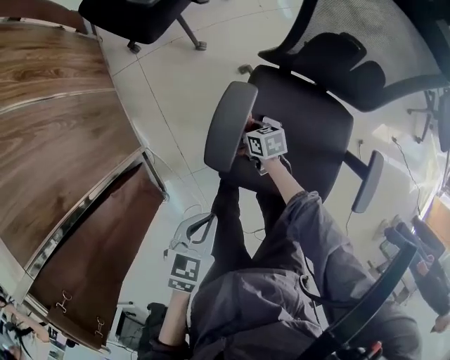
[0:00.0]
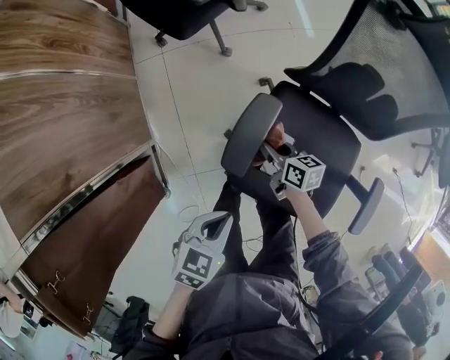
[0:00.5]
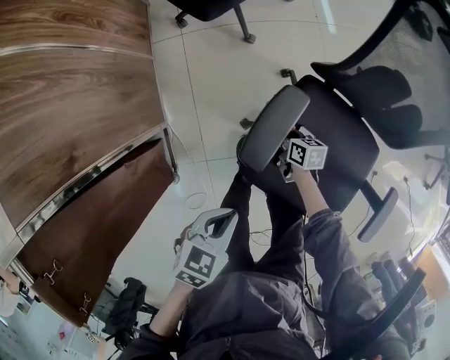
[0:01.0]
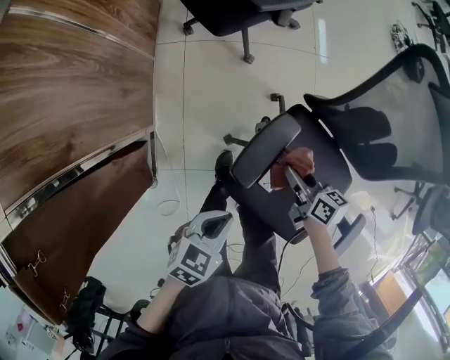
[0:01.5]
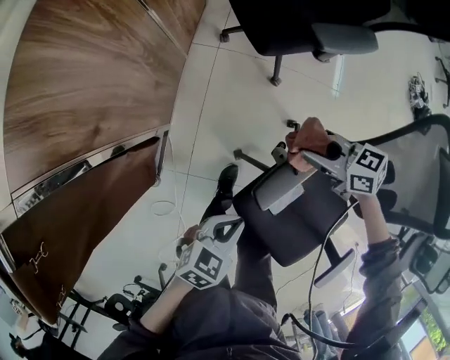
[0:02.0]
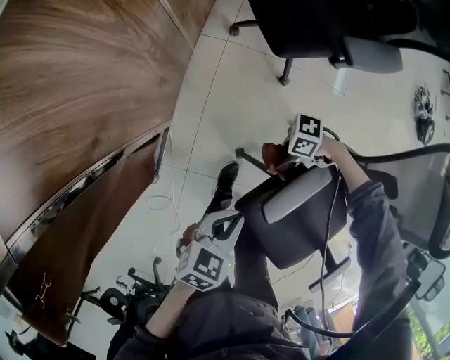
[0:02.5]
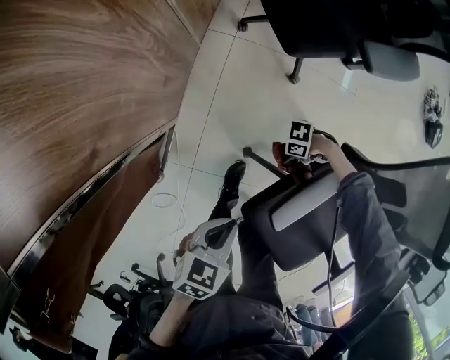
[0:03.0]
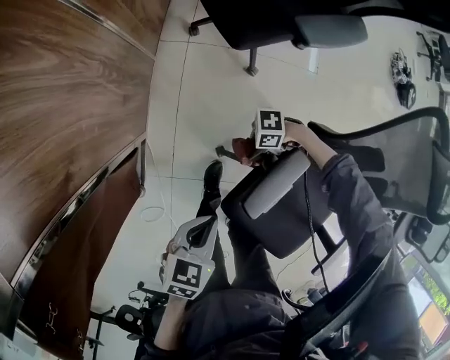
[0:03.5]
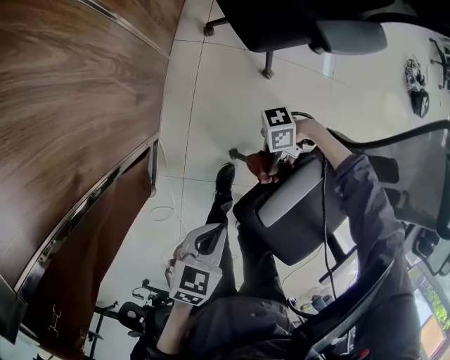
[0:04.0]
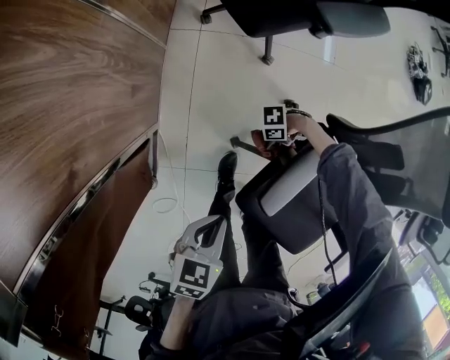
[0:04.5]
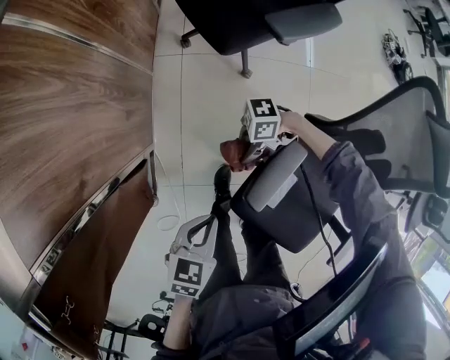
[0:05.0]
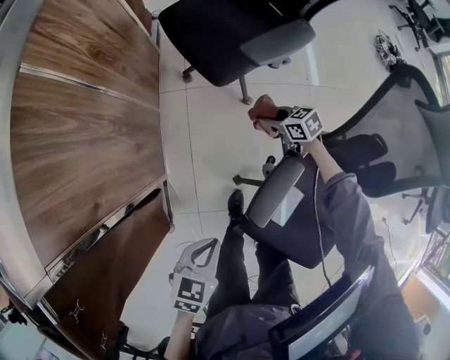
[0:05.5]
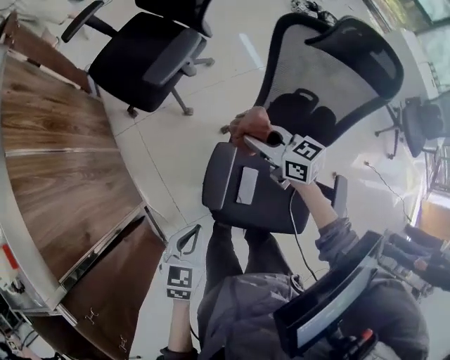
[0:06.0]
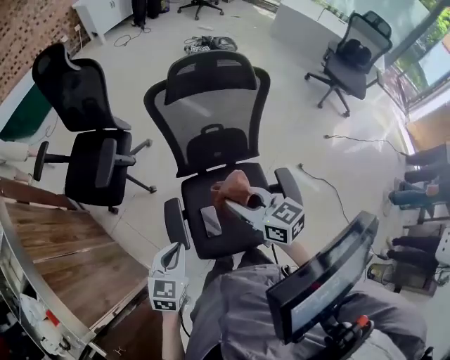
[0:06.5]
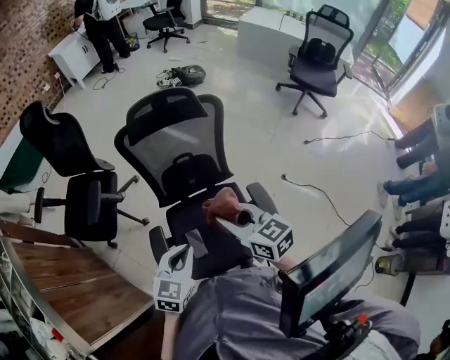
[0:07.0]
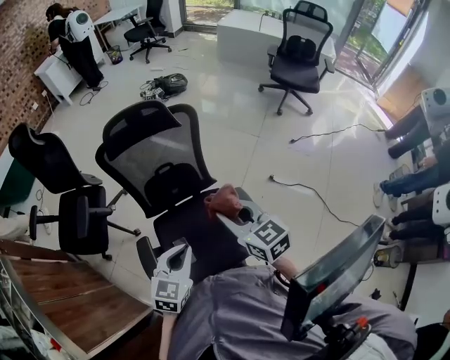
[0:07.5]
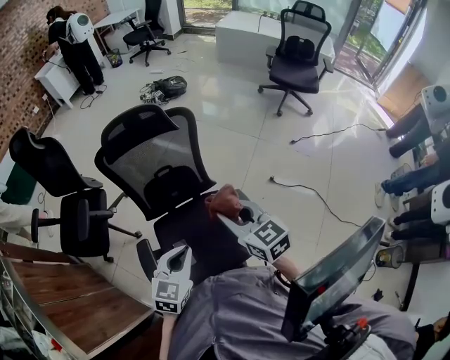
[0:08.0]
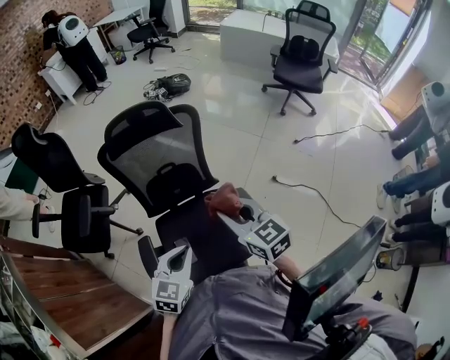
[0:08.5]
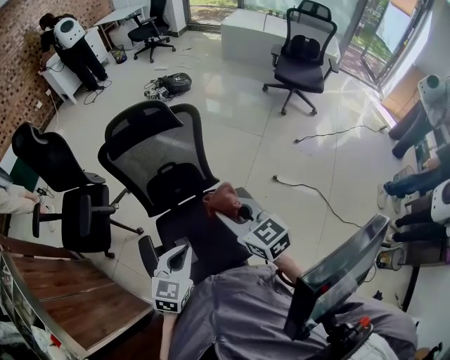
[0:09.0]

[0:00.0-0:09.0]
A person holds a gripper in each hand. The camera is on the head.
0:00.0 to 0:02.0: The right gripper moves up and down over about 25 cm, changing direction 2 times, and rotates about 60 degrees; the left gripper shifts by some 5 cm.
0:02.0 to 0:04.5: The right gripper swings up and down, some 30 cm each way, with 2 reversals, and turns by approximately 70 degrees. Meanwhile the left gripper moves approximately 10 cm.
0:04.5 to 0:07.0: The left gripper moves some 50 cm, and twists approximately 60 degrees clockwise, seen from behind. Meanwhile the right gripper shifts approximately 60 cm upward, and turns by some 150 degrees.
0:07.0 to 0:09.0: Both grippers move to the right, about 10 cm.

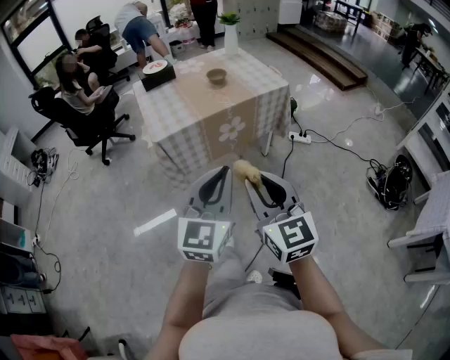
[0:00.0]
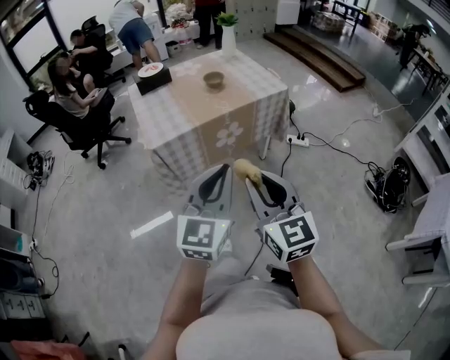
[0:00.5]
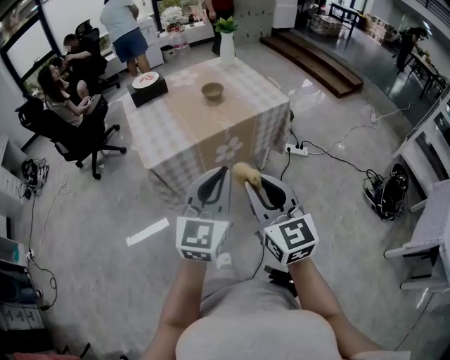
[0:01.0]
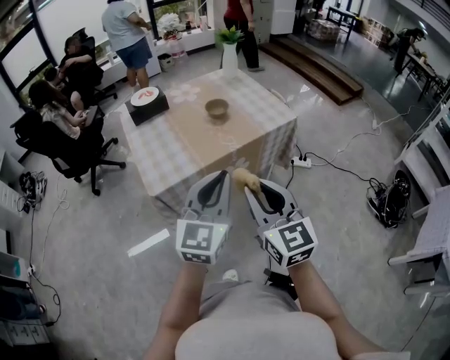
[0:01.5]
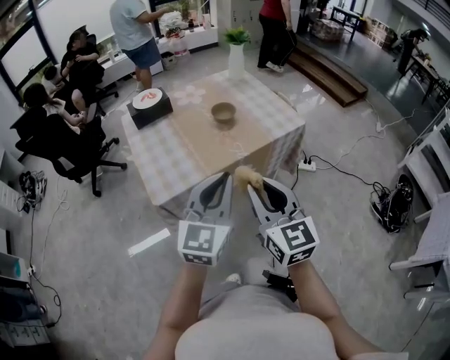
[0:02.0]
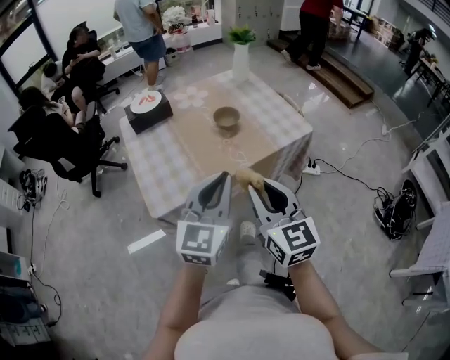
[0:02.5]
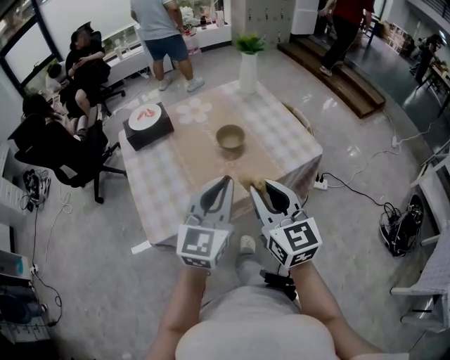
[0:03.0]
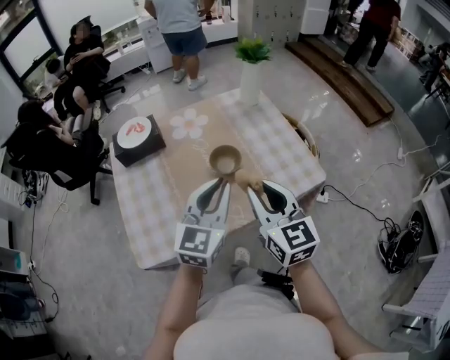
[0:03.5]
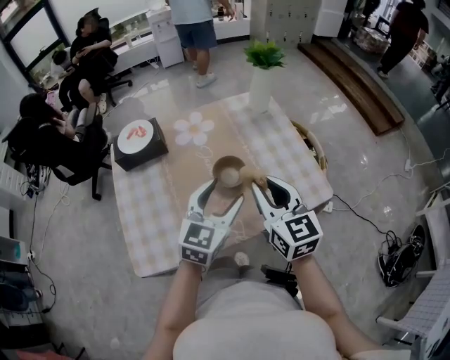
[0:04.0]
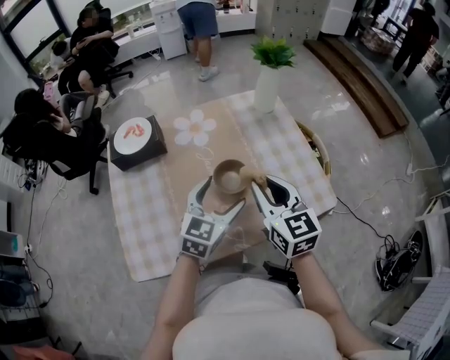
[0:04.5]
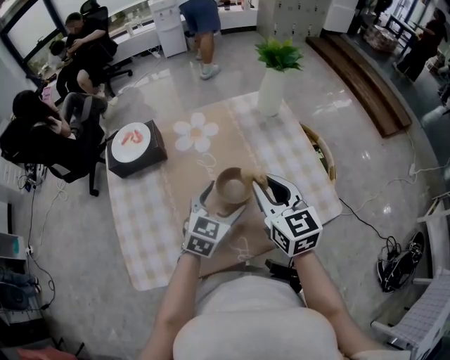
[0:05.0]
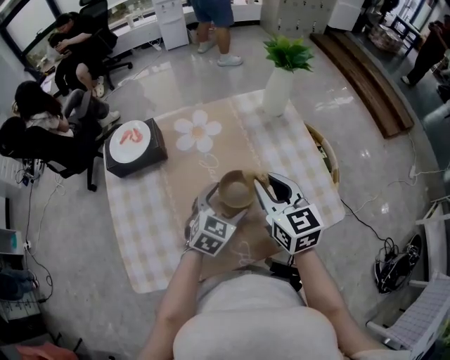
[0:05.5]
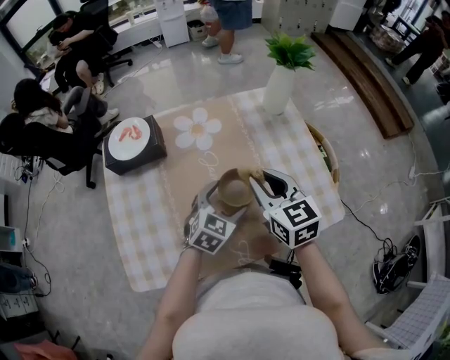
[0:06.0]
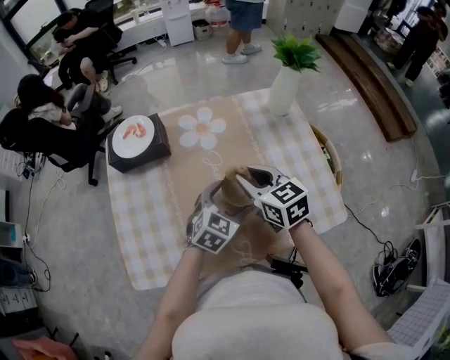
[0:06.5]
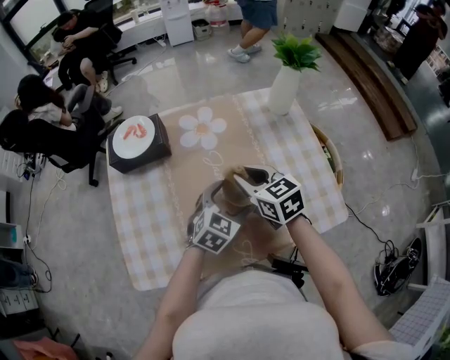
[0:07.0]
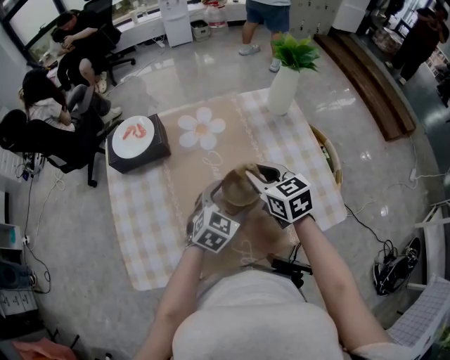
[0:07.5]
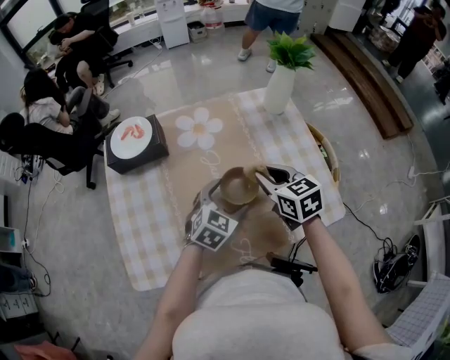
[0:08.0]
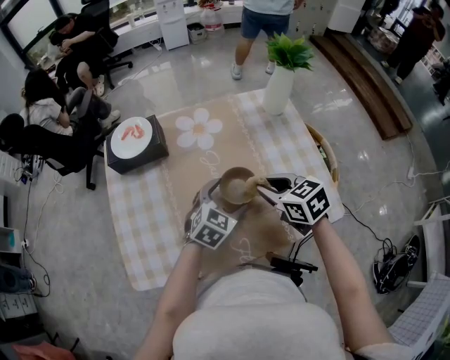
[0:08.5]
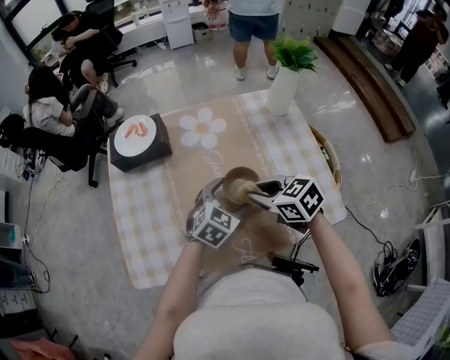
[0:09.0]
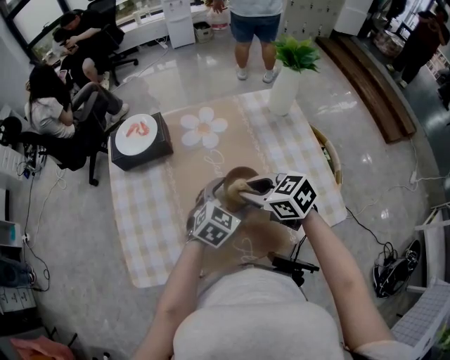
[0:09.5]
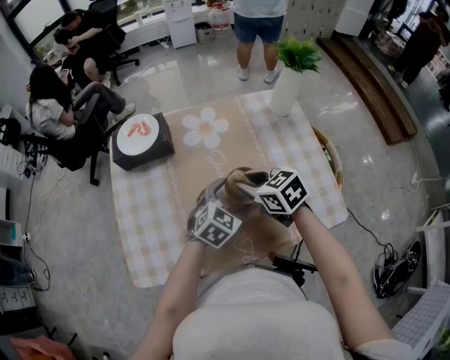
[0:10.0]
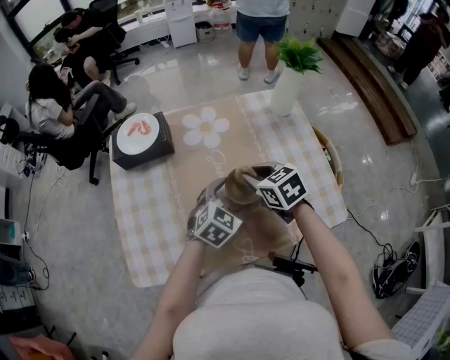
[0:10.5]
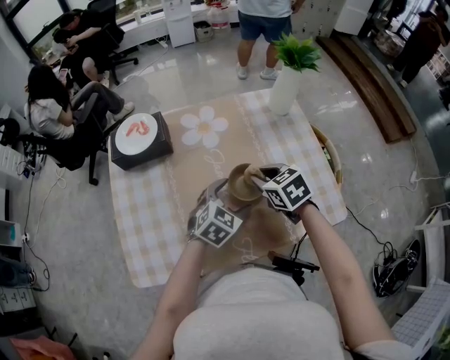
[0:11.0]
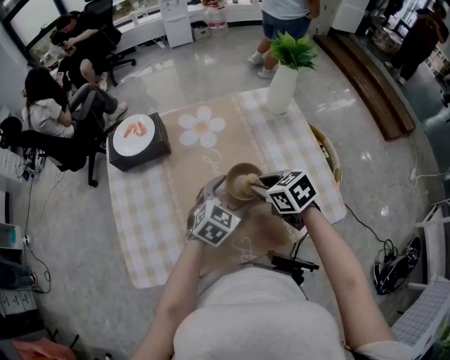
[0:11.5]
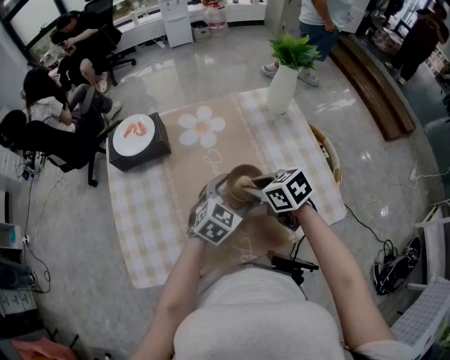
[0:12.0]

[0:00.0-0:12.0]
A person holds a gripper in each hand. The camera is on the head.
0:00.0 to 0:02.0: Both grippers move forward, about 25 cm.
0:02.0 to 0:04.0: Both grippers move forward, some 35 cm. The left gripper opens its fingers.
0:04.0 to 0:06.0: The left gripper travels downward and forward by approximately 15 cm, and rotates about 20 degrees. Meanwhile the right gripper travels forward and downward by approximately 15 cm.
0:06.0 to 0:08.0: The right gripper goes approximately 5 cm downward.
0:08.0 to 0:10.0: The right gripper goes roughly 10 cm to the left.
0:10.0 to 0:12.0: The grippers make only small movements.

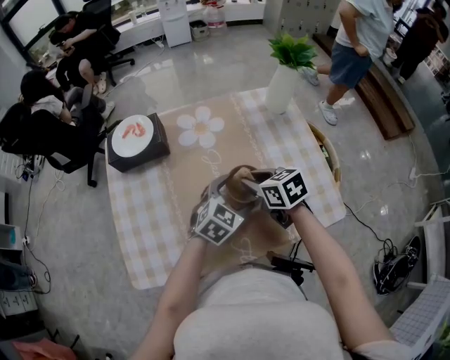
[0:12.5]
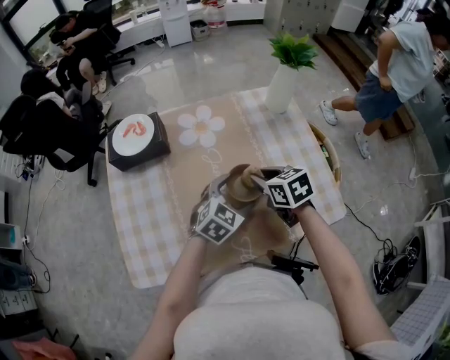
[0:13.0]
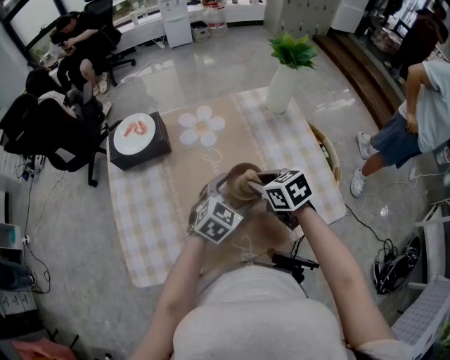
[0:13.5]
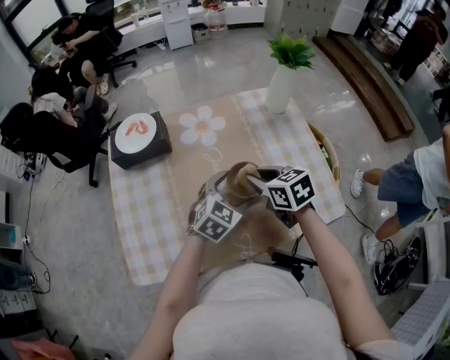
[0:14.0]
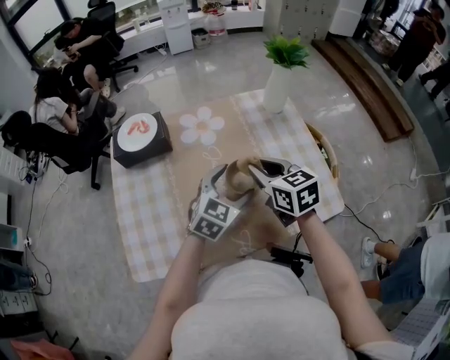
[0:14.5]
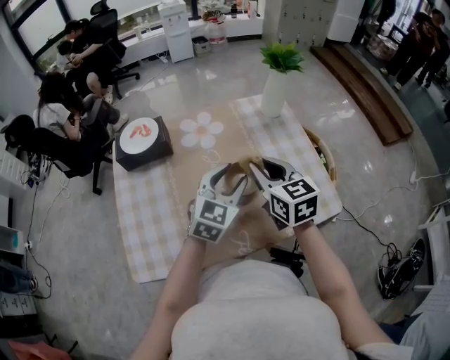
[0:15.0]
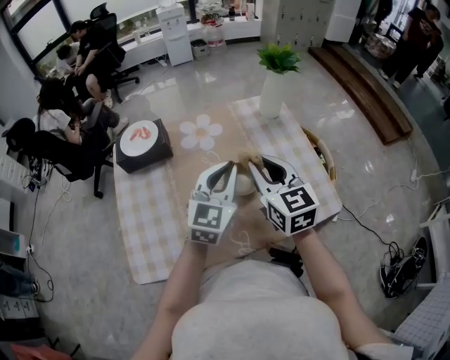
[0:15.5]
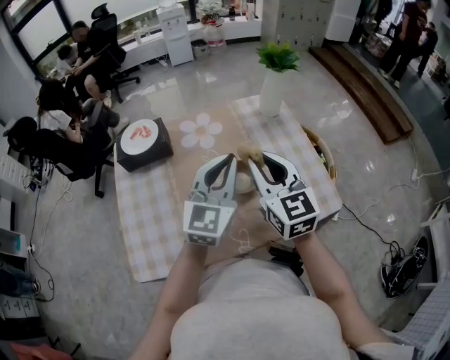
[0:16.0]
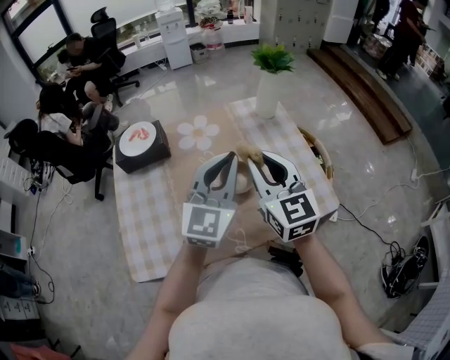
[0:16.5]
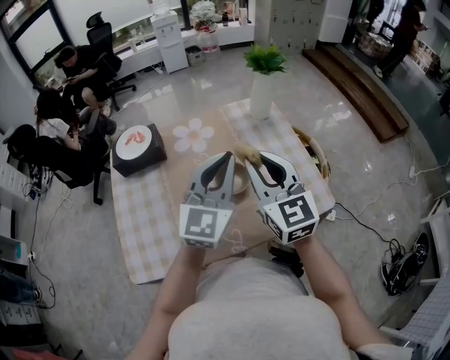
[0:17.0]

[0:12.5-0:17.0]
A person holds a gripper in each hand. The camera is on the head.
0:12.5 to 0:14.5: The two grippers go approximately 5 cm upward.
0:14.5 to 0:17.0: The left gripper is displaced upward by roughly 20 cm, tilts its fingers about 30 degrees upward, and closes. Meanwhile the right gripper is displaced upward and backward by about 15 cm, and swivels roughly 30 degrees.

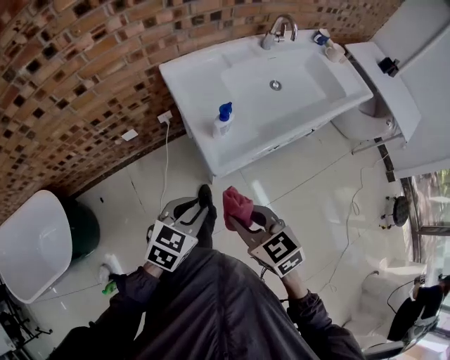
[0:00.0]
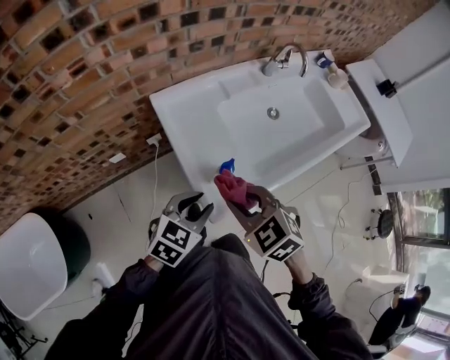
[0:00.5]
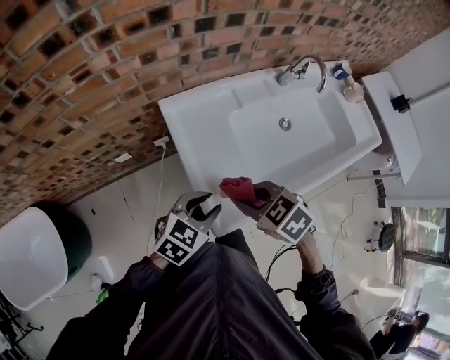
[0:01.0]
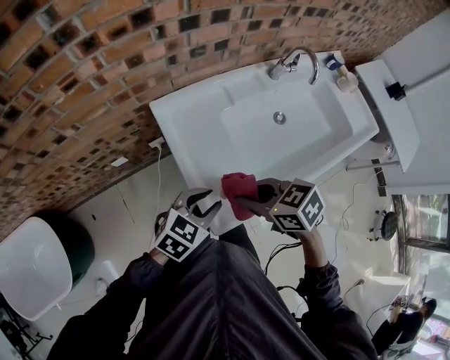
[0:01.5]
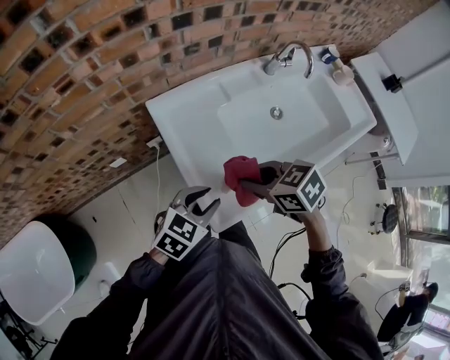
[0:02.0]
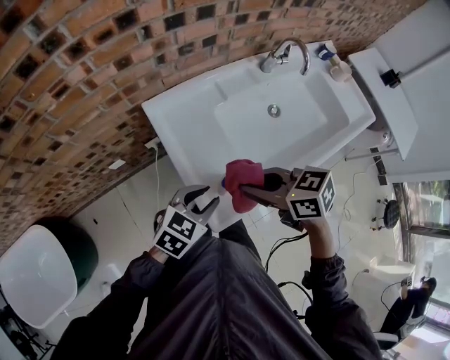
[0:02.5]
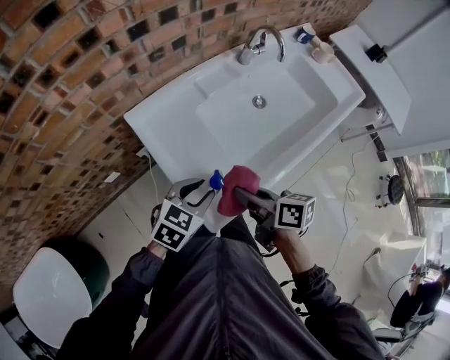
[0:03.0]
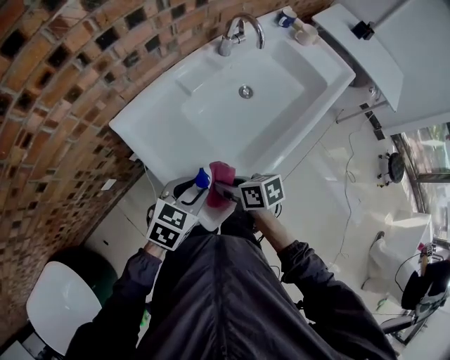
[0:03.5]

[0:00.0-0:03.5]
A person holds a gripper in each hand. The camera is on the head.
0:00.0 to 0:02.0: The left gripper ends up approximately 20 cm from where it was, while the right gripper ends up roughly 30 cm from where it was, and turns by roughly 20 degrees.
0:02.0 to 0:03.5: The right gripper moves downward, roughly 10 cm, and twists about 40 degrees clockwise, seen from behind.
